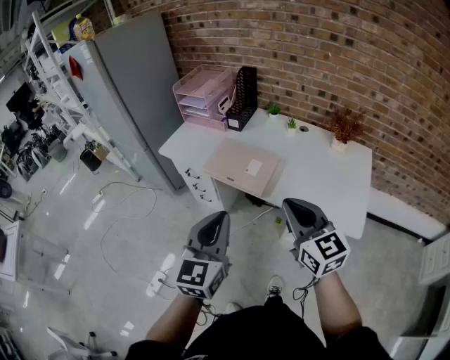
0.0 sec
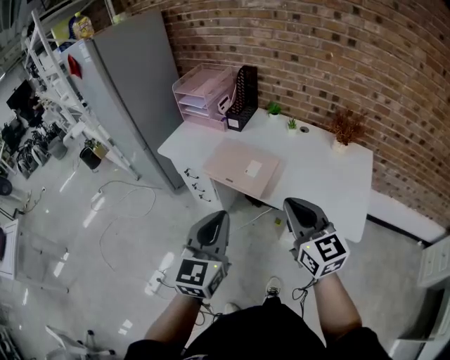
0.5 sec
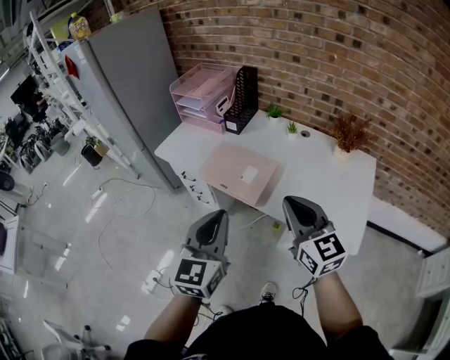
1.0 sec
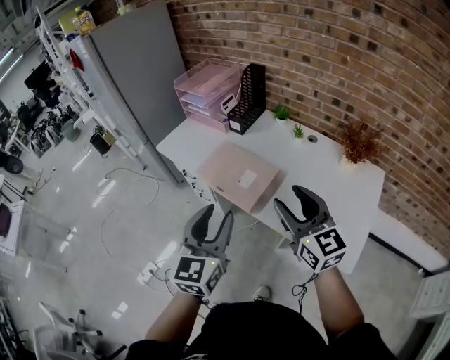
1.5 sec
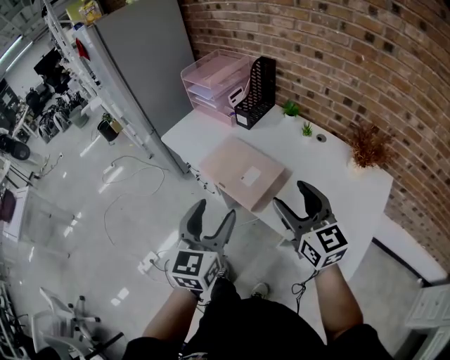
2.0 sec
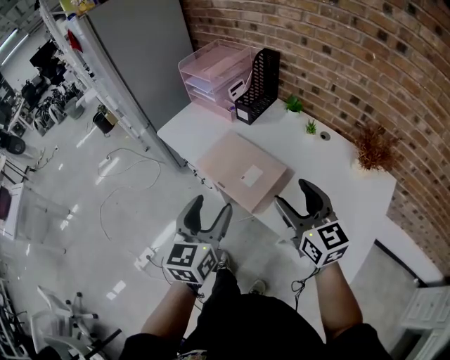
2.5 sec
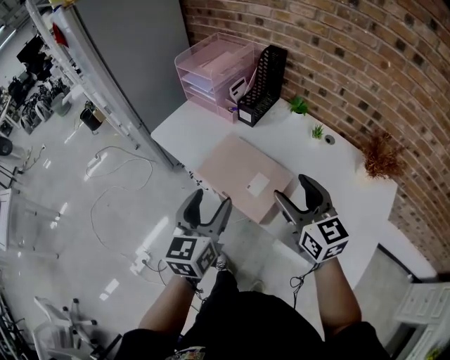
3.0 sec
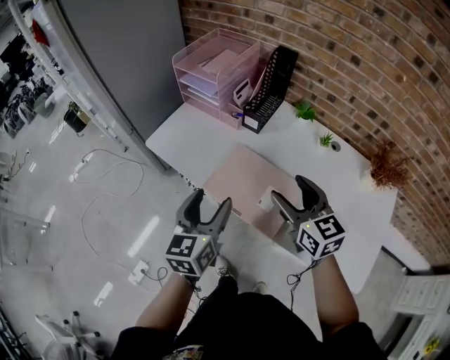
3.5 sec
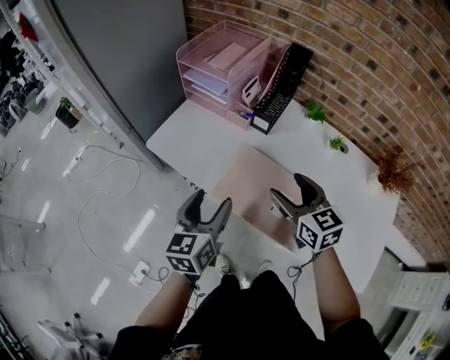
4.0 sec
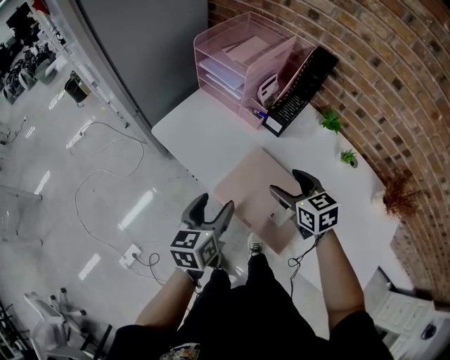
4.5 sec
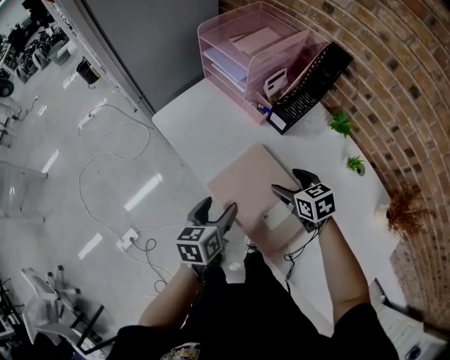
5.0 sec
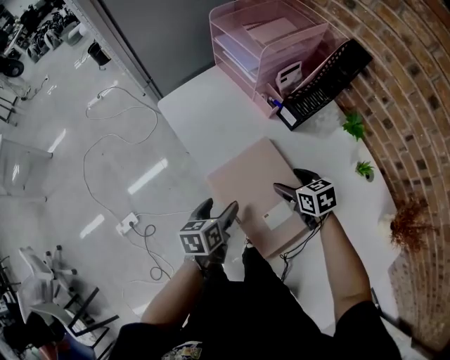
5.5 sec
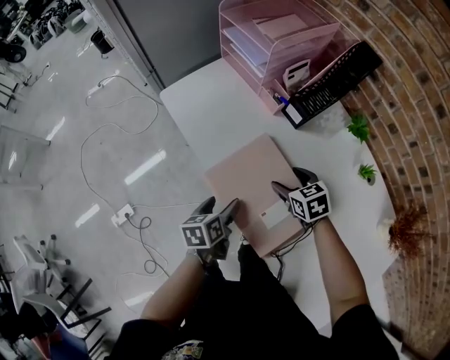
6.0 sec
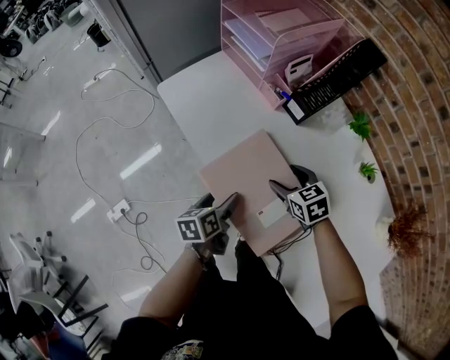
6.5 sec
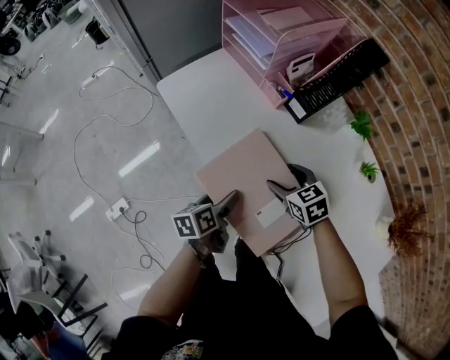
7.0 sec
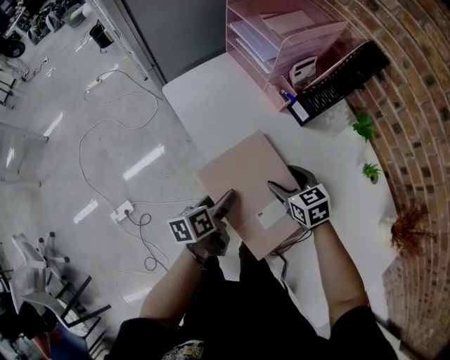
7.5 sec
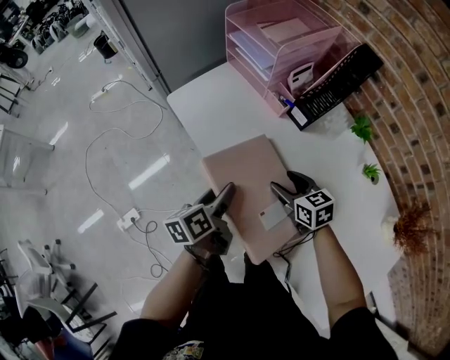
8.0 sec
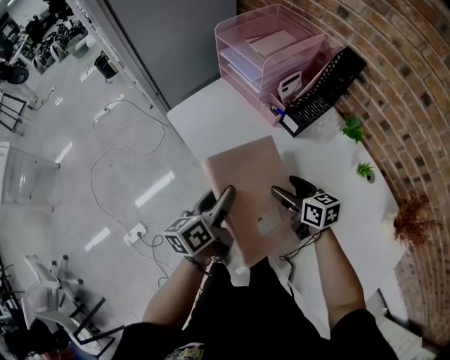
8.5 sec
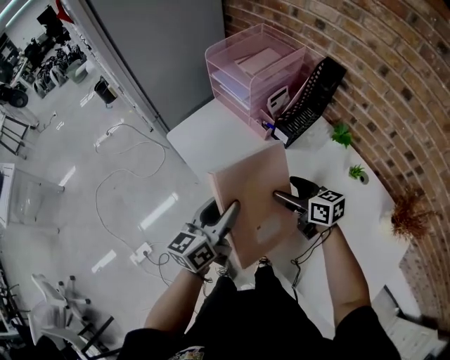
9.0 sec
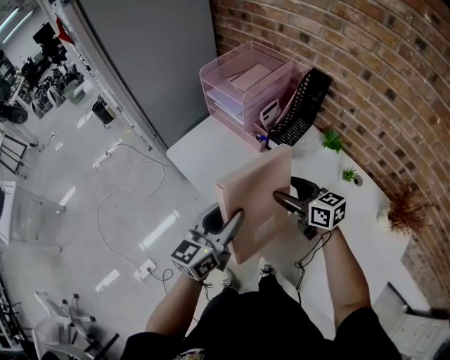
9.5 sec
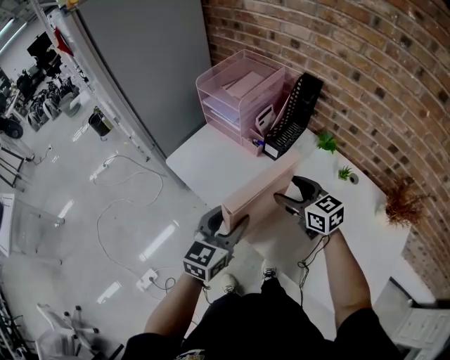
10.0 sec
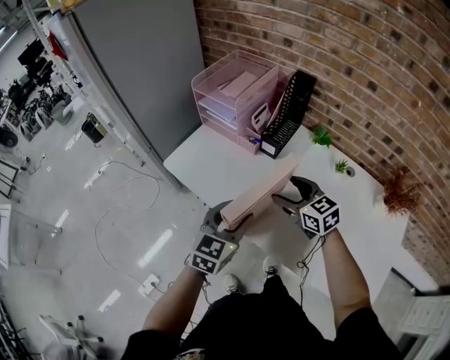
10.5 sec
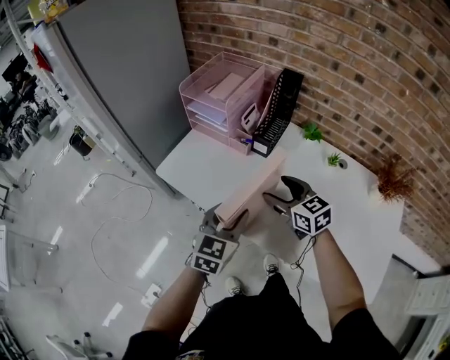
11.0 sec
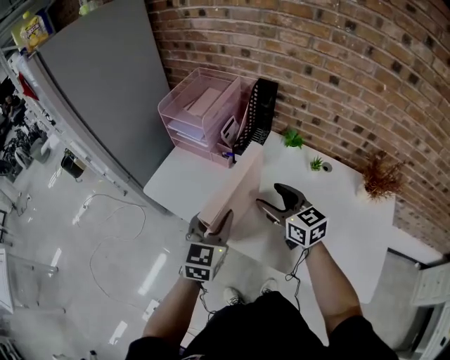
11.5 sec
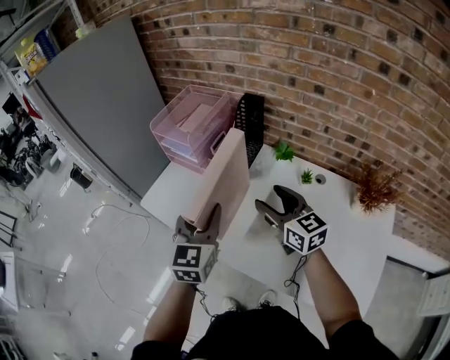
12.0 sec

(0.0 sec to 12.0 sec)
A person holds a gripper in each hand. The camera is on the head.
0.0 sec - 2.0 sec: Both grippers travel together forward and to the right, some 15 cm. The left gripper opens. The right gripper opens its fingers.
2.0 sec - 4.0 sec: Both grippers travel together forward, to the left and downward, roughly 30 cm. The right gripper turns by about 20 degrees, while the left gripper swivels some 20 degrees.
4.0 sec - 6.0 sec: Both grippers travel together downward, roughly 20 cm. The right gripper turns by approximately 40 degrees. The left gripper turns by roughly 40 degrees.
6.0 sec - 8.0 sec: The left gripper goes approximately 10 cm upward; the right gripper changes place by some 5 cm.
8.0 sec - 10.0 sec: The two grippers go approximately 15 cm upward. The left gripper rolls clockwise, seen from behind, by approximately 60 degrees.
10.0 sec - 12.0 sec: The left gripper shifts approximately 10 cm upward, forward and to the right, while the right gripper travels upward and to the right by approximately 10 cm, and rotates about 20 degrees.

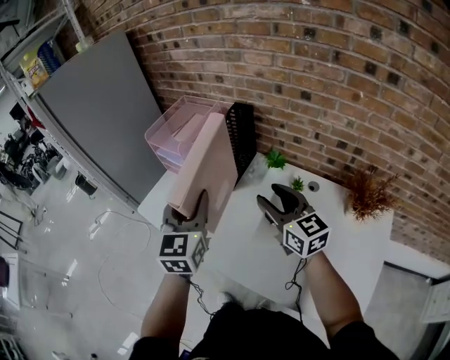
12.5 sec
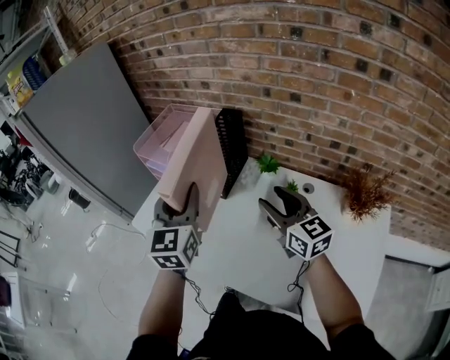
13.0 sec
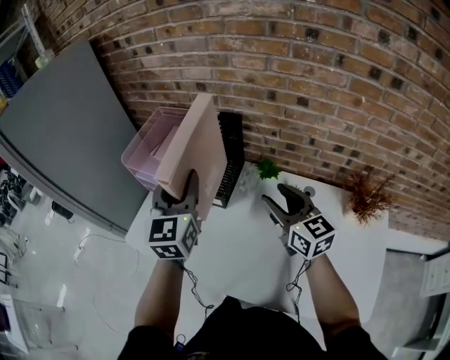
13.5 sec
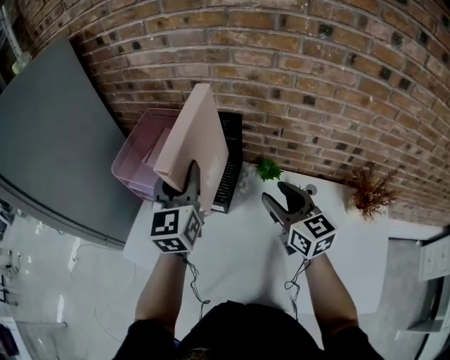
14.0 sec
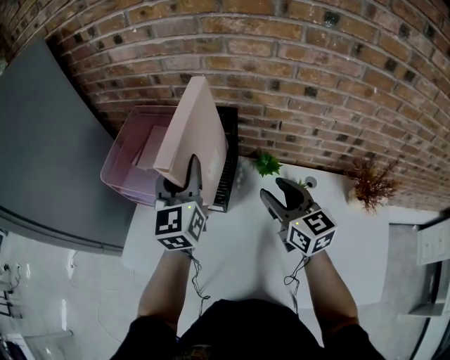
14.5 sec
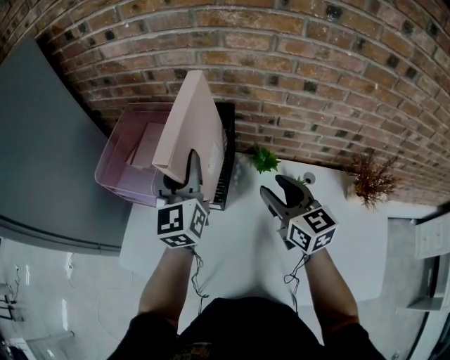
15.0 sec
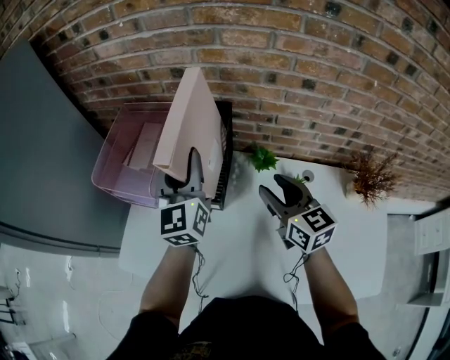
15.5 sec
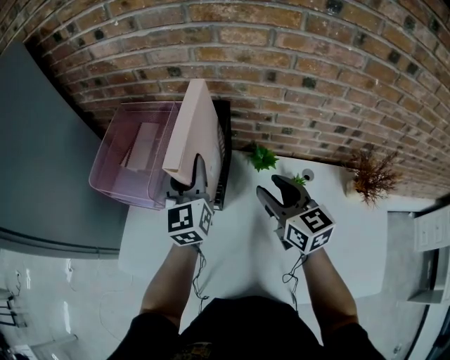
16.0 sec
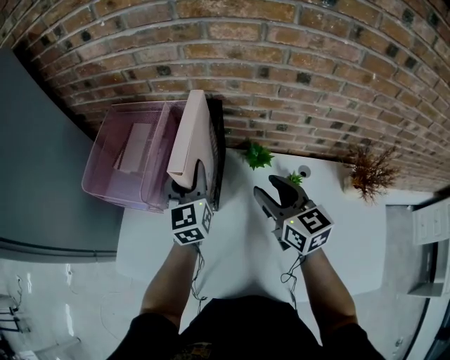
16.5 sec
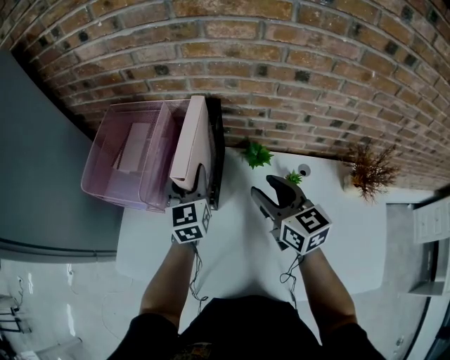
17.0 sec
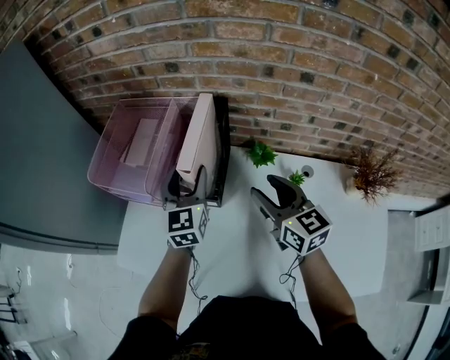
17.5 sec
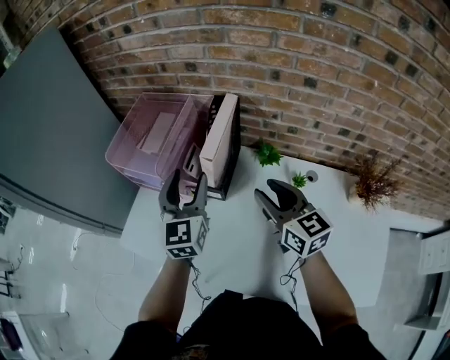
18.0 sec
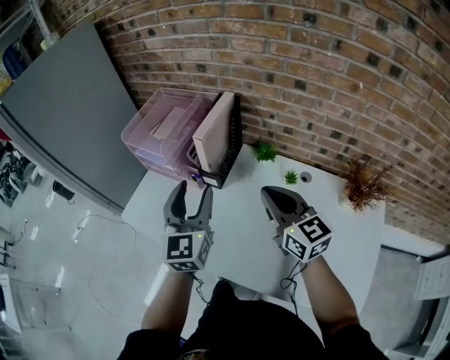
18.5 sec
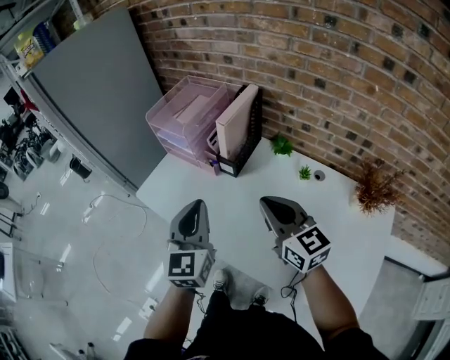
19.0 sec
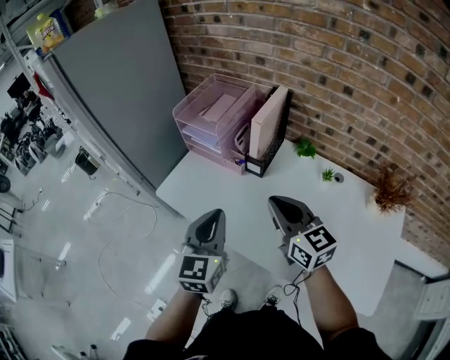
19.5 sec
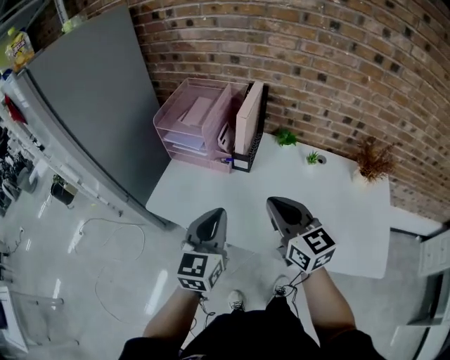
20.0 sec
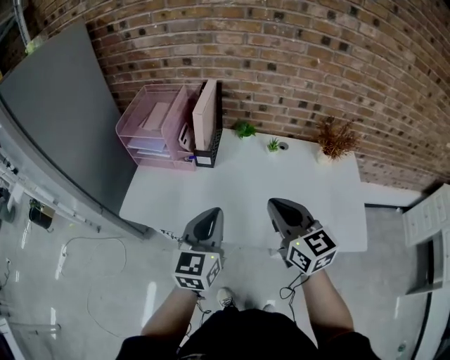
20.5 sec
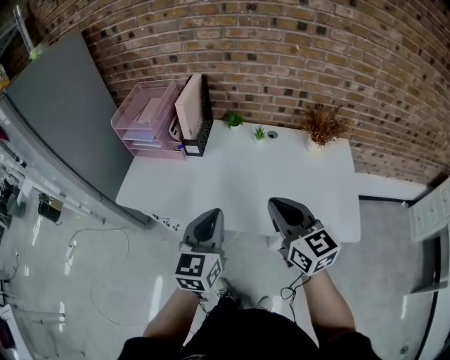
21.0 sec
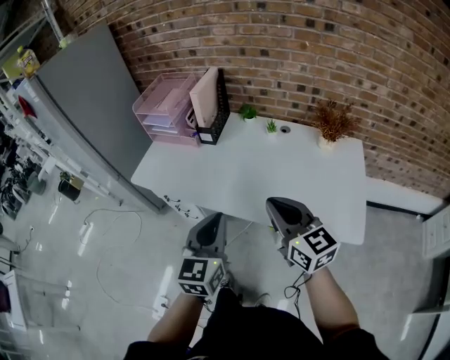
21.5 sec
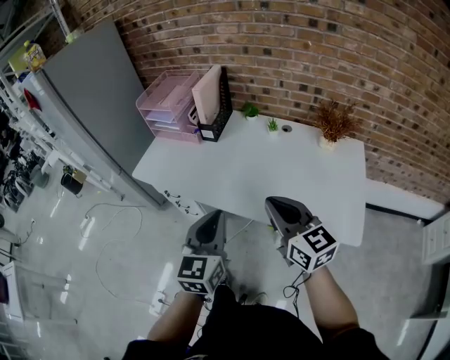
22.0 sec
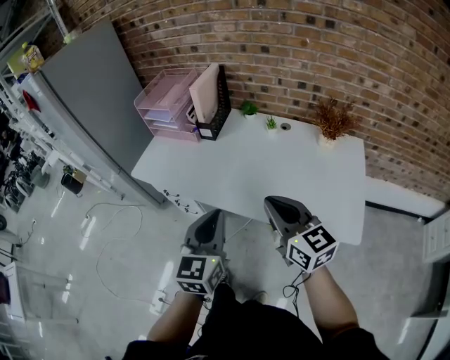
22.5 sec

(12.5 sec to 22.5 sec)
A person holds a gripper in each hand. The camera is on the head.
12.5 sec - 14.5 sec: The right gripper heads forward, covering some 15 cm, and turns by approximately 20 degrees. The left gripper moves forward, approximately 25 cm.
14.5 sec - 16.5 sec: The left gripper heads downward, covering roughly 10 cm.
16.5 sec - 18.5 sec: The right gripper goes approximately 15 cm backward and upward, swivels about 20 degrees, and closes up, while the left gripper goes approximately 25 cm backward.
18.5 sec - 20.5 sec: The left gripper moves some 20 cm, rotates about 30 degrees, and closes, while the right gripper shifts by some 20 cm.
20.5 sec - 22.5 sec: Both grippers move backward and to the right, roughly 20 cm.

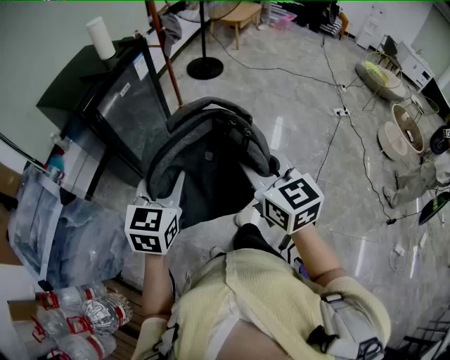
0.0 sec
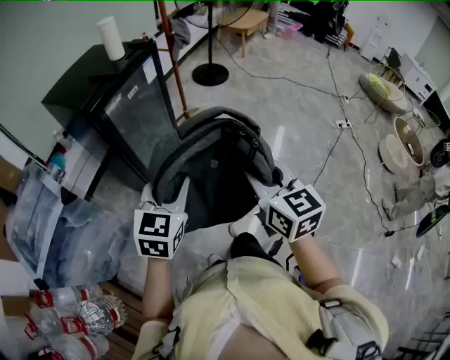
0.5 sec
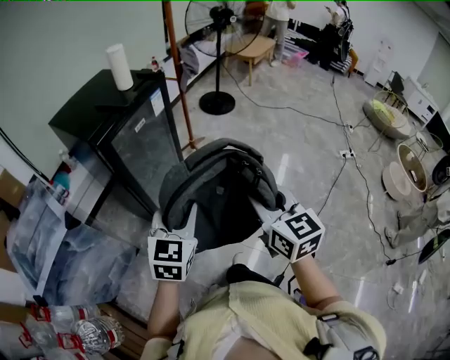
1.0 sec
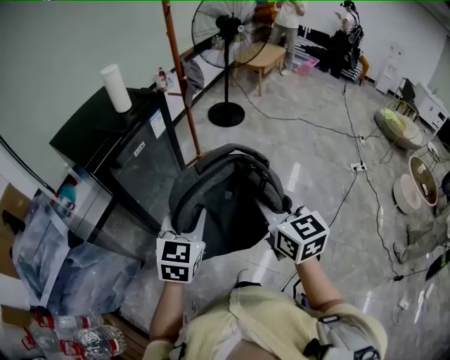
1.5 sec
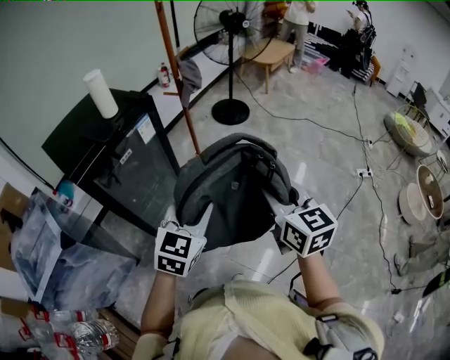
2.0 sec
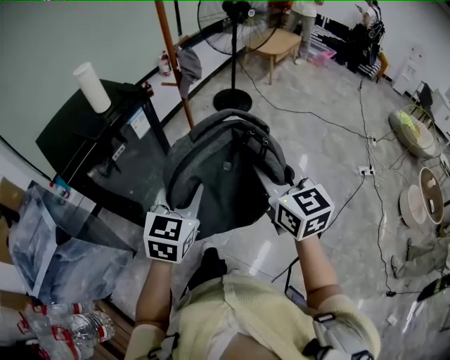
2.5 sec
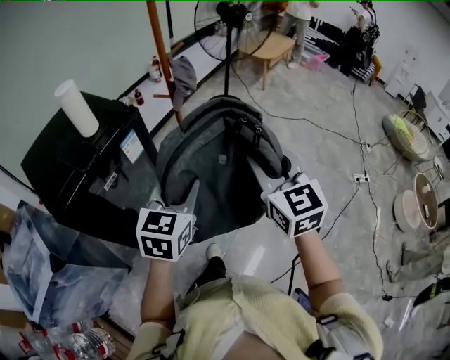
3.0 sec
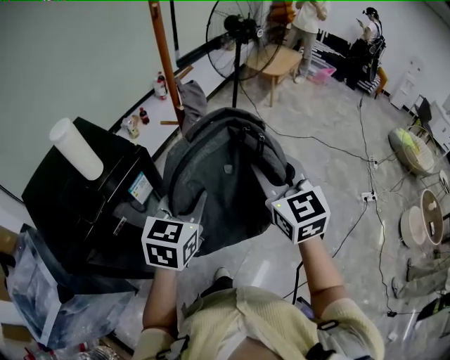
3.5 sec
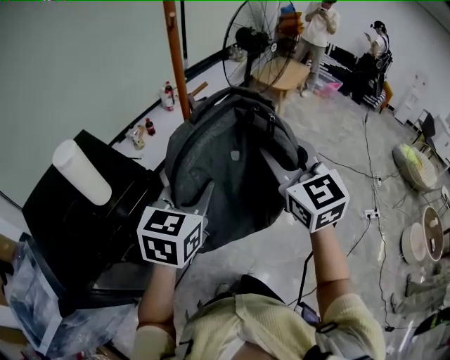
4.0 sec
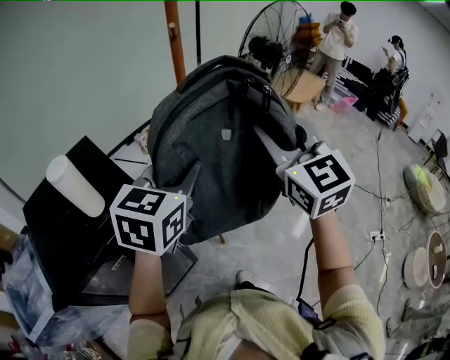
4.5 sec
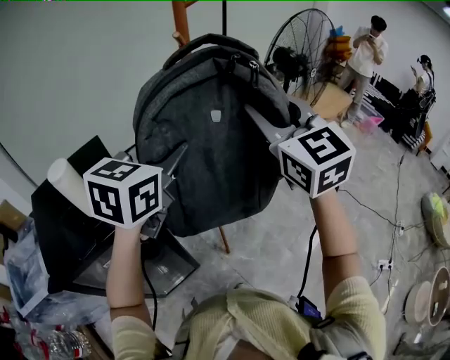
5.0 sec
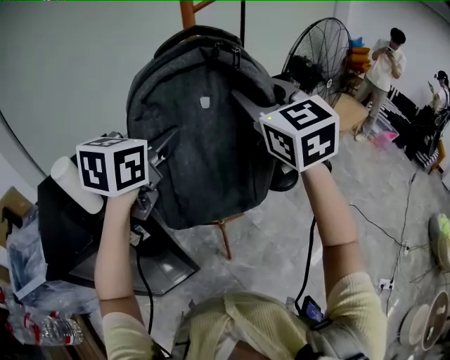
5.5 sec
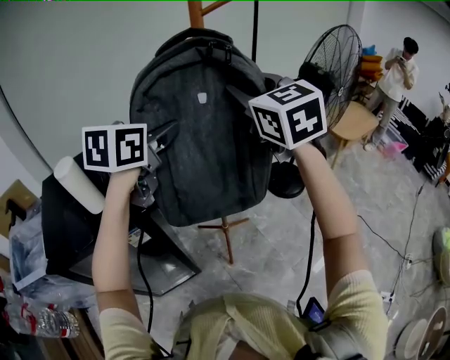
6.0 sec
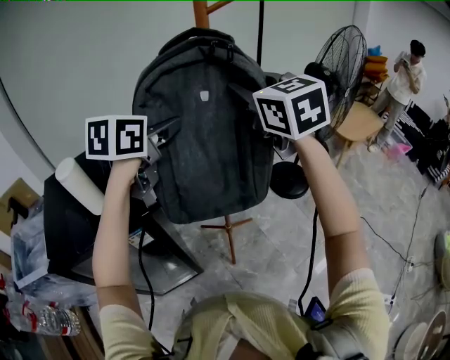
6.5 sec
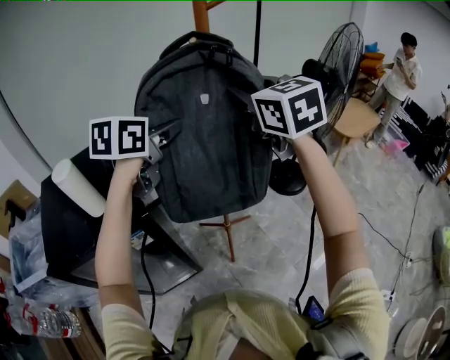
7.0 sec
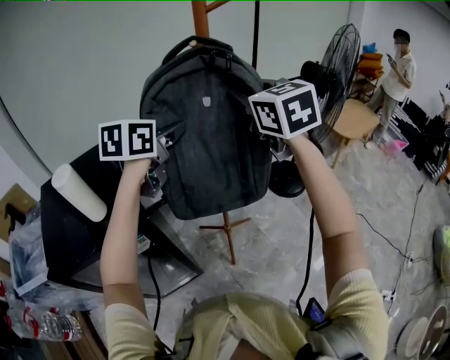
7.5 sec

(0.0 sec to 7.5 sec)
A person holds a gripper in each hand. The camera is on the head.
0.0 sec - 2.0 sec: The grippers both shift forward and to the right by approximately 25 cm.
2.0 sec - 4.0 sec: Both grippers move forward, about 35 cm. The right gripper swivels roughly 30 degrees.
4.0 sec - 5.5 sec: Both grippers travel together forward and upward, some 20 cm. The right gripper turns by some 20 degrees.
5.5 sec - 7.5 sec: Both grippers travel together forward, approximately 10 cm.
